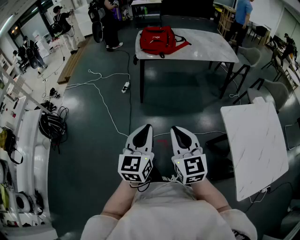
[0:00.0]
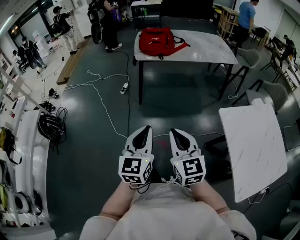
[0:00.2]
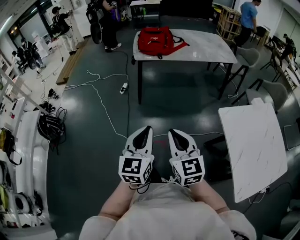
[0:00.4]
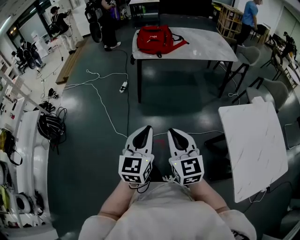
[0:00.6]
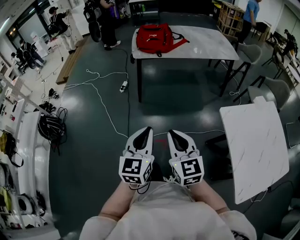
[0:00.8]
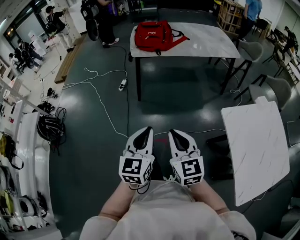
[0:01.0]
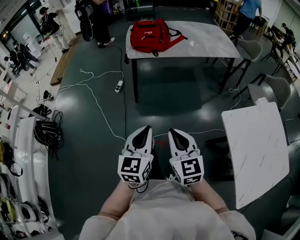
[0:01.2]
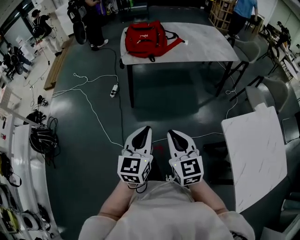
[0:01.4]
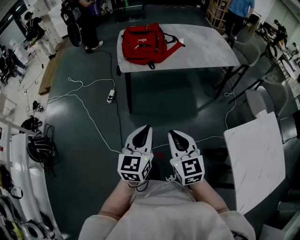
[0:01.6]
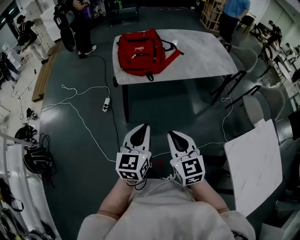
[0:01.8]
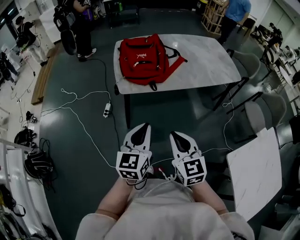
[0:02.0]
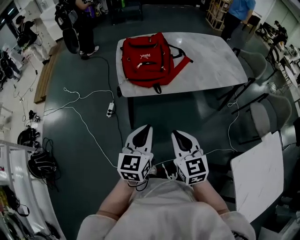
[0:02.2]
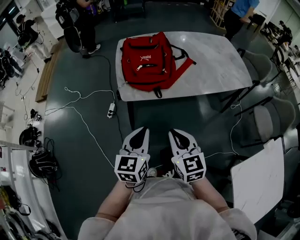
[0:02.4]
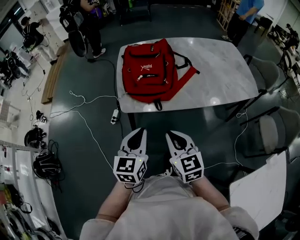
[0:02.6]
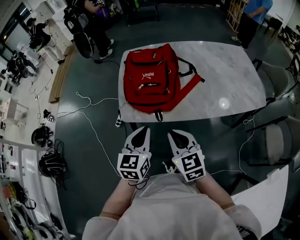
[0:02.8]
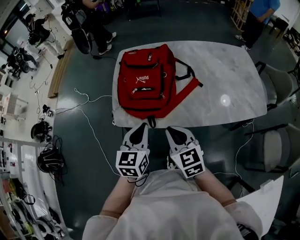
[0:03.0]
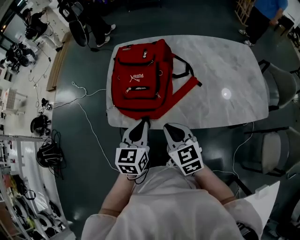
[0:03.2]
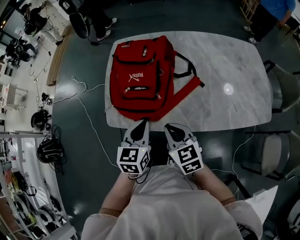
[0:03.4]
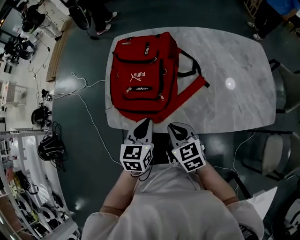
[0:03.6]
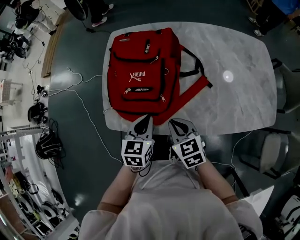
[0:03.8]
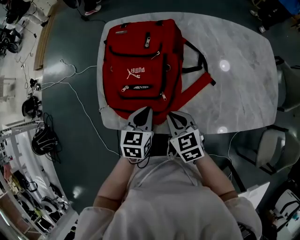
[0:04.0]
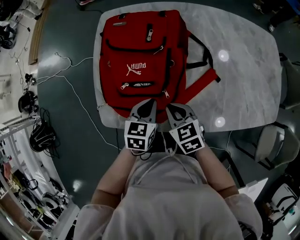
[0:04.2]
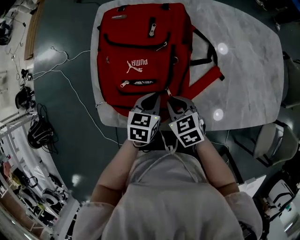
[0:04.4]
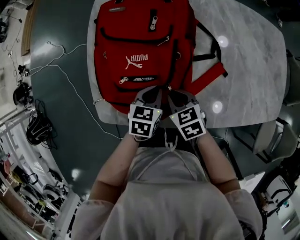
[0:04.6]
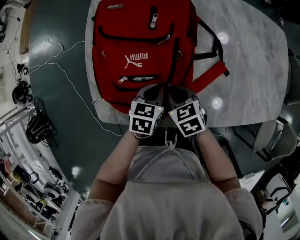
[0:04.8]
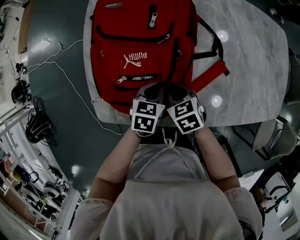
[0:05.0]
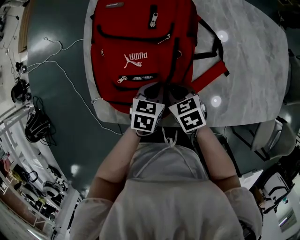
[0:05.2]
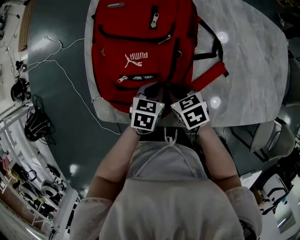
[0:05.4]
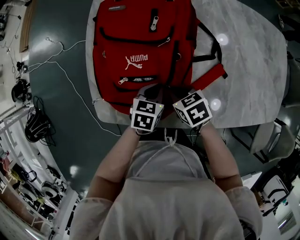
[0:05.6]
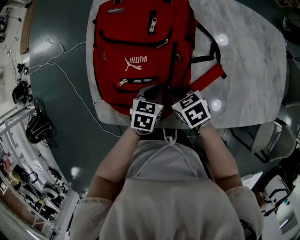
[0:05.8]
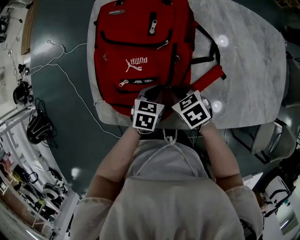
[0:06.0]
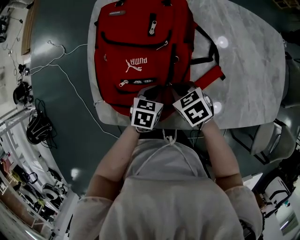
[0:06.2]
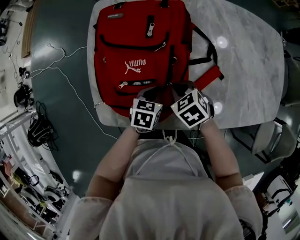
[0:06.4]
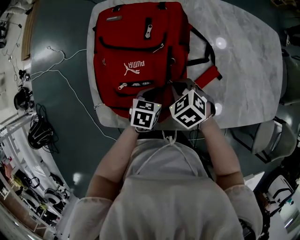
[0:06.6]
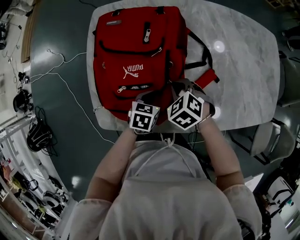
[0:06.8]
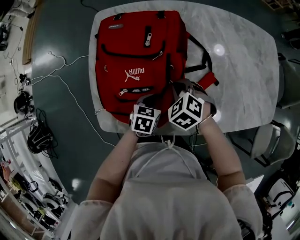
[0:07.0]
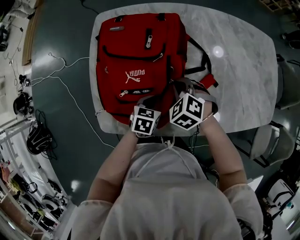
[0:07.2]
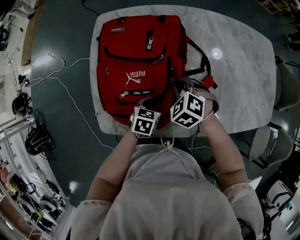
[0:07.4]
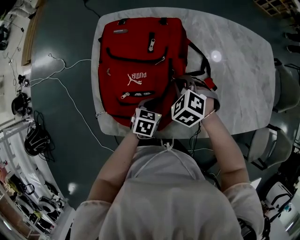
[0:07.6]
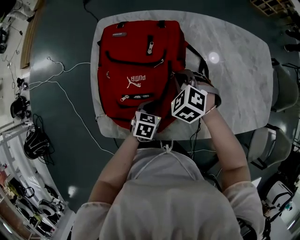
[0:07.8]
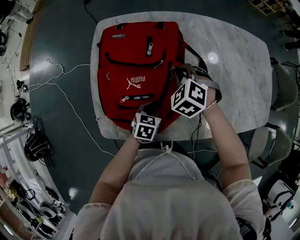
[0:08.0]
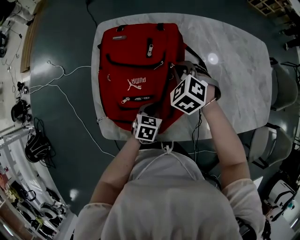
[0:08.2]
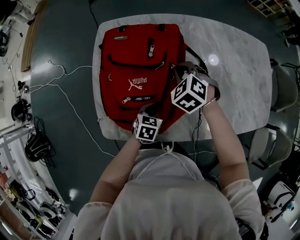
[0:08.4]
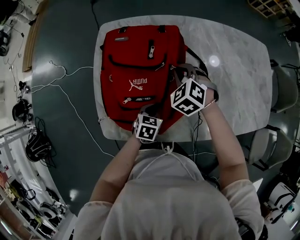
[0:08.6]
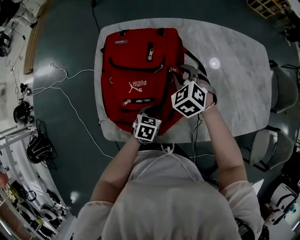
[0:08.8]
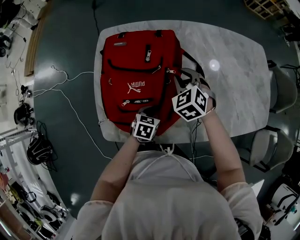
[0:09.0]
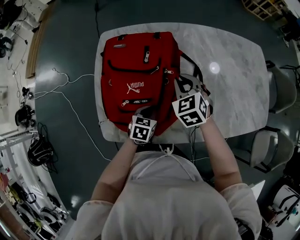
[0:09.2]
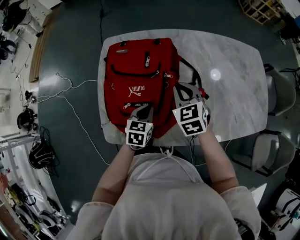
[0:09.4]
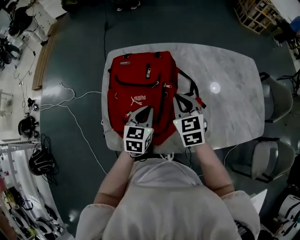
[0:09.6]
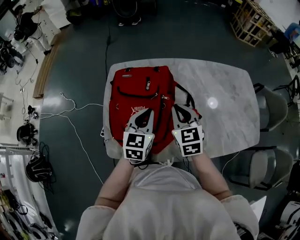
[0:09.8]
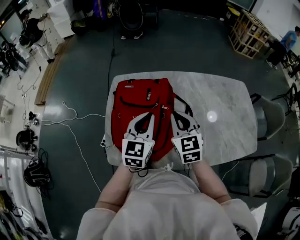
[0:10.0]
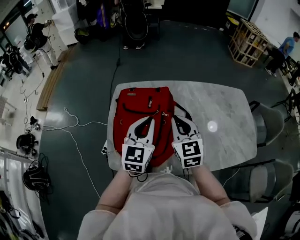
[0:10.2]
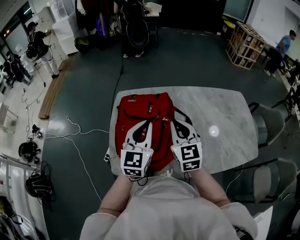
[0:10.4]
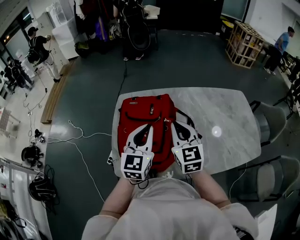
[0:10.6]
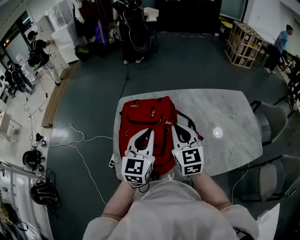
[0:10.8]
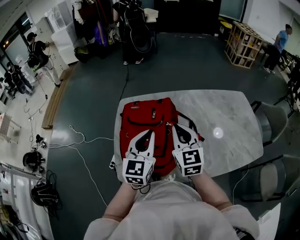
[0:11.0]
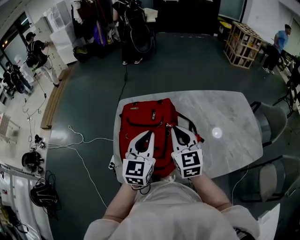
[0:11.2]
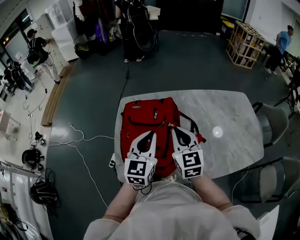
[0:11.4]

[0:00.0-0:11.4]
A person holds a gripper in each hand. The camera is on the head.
0:00.0 to 0:01.4: Both grippers travel together forward, some 15 cm.
0:01.4 to 0:02.8: The pair of grippers is taken forward, some 50 cm.
0:02.8 to 0:04.2: The two grippers go some 30 cm forward and downward. The left gripper swivels about 20 degrees; the right gripper rotates some 30 degrees.
0:04.2 to 0:05.6: The two grippers go approximately 5 cm downward. The right gripper turns by approximately 20 degrees.
0:05.6 to 0:07.2: The right gripper heads forward and upward, covering about 10 cm, and changes its angle by roughly 50 degrees.
0:07.2 to 0:08.6: The right gripper is displaced forward by approximately 10 cm.
0:08.6 to 0:10.0: The right gripper is displaced upward and backward by about 20 cm, and tips its fingers upward by some 30 degrees. The left gripper shifts approximately 30 cm upward, and tilts its fingers approximately 40 degrees upward.
0:10.0 to 0:11.4: The grippers move only a little.

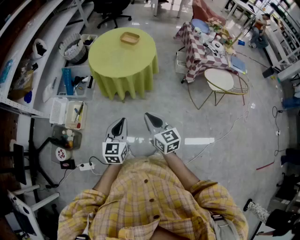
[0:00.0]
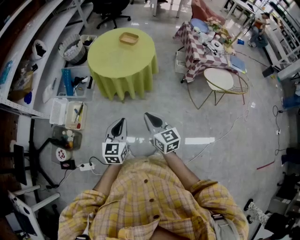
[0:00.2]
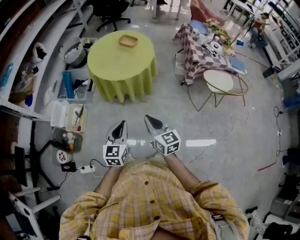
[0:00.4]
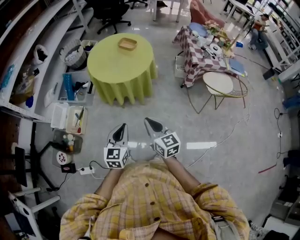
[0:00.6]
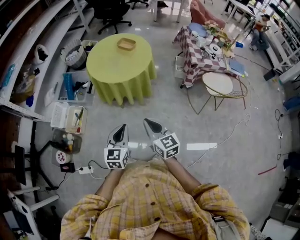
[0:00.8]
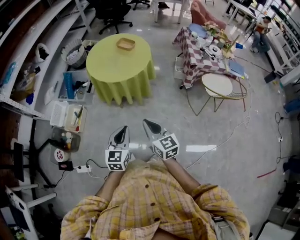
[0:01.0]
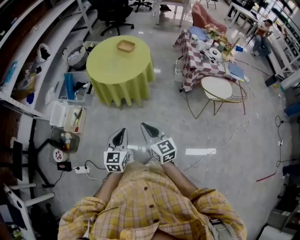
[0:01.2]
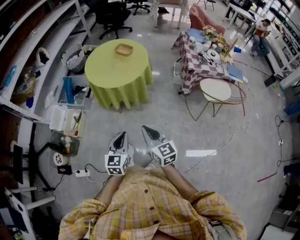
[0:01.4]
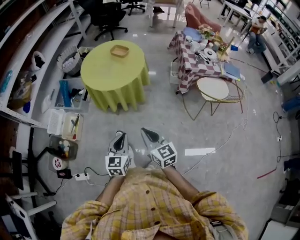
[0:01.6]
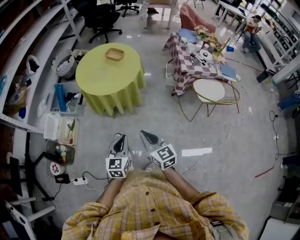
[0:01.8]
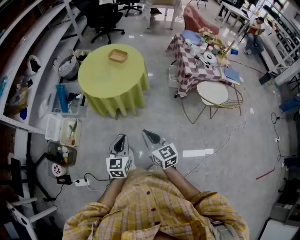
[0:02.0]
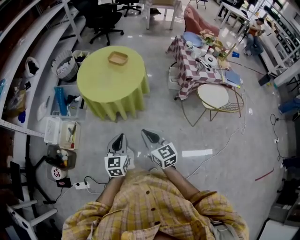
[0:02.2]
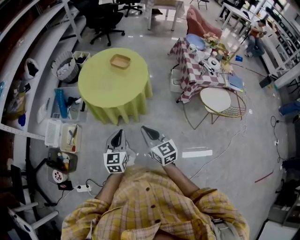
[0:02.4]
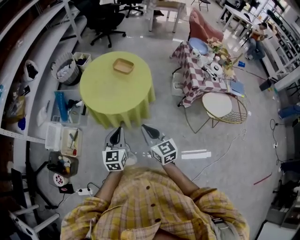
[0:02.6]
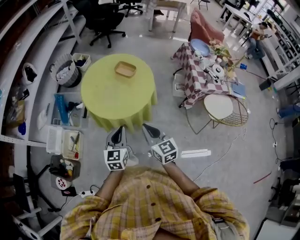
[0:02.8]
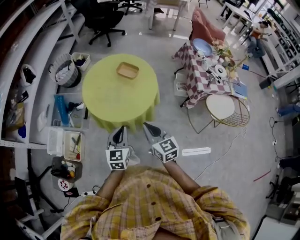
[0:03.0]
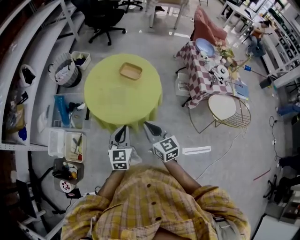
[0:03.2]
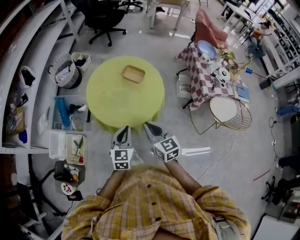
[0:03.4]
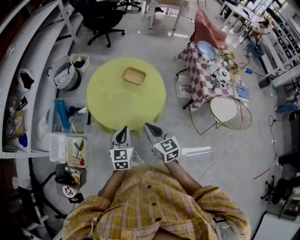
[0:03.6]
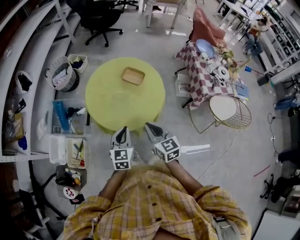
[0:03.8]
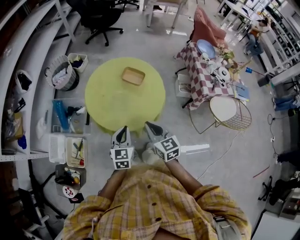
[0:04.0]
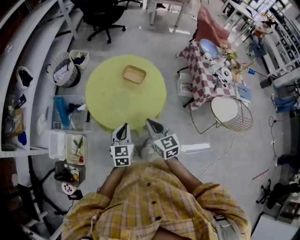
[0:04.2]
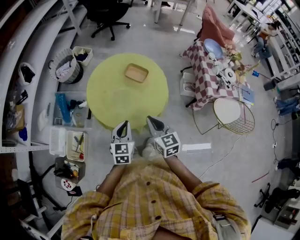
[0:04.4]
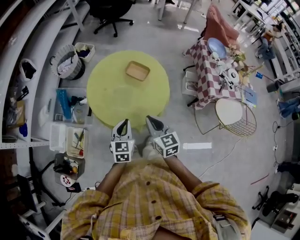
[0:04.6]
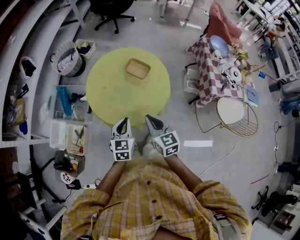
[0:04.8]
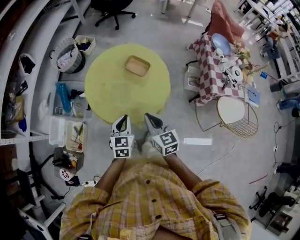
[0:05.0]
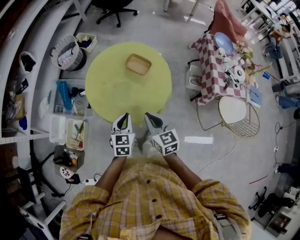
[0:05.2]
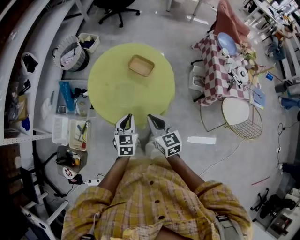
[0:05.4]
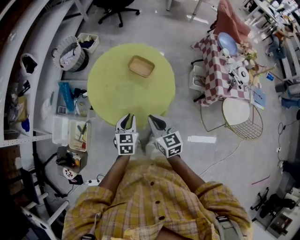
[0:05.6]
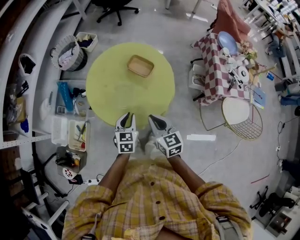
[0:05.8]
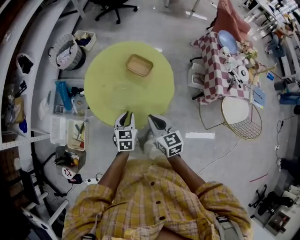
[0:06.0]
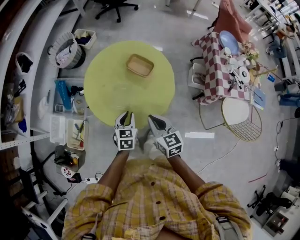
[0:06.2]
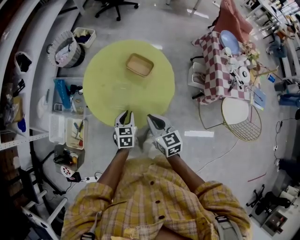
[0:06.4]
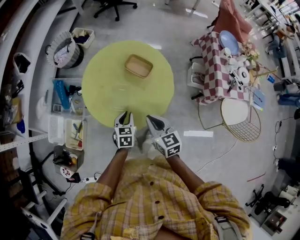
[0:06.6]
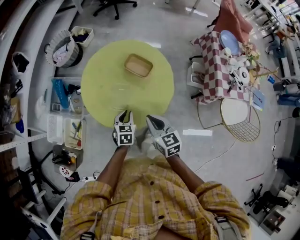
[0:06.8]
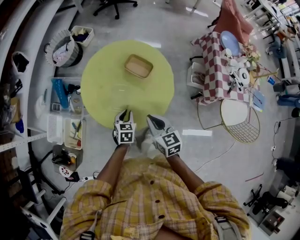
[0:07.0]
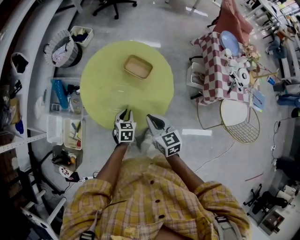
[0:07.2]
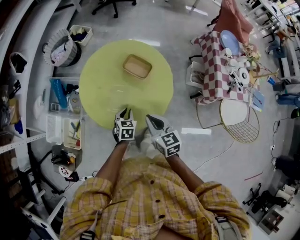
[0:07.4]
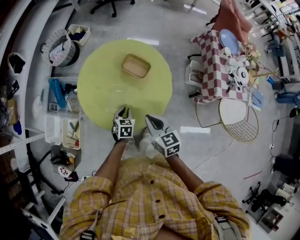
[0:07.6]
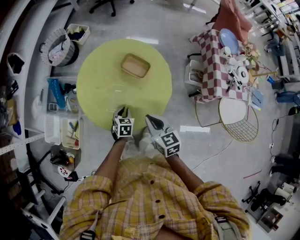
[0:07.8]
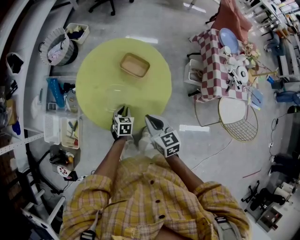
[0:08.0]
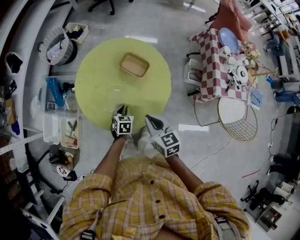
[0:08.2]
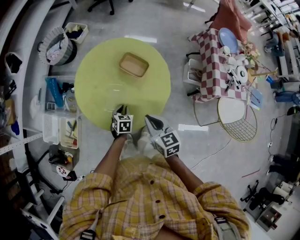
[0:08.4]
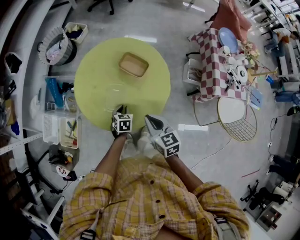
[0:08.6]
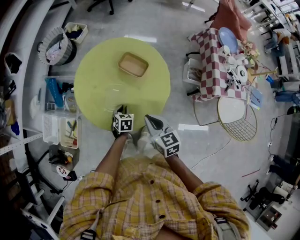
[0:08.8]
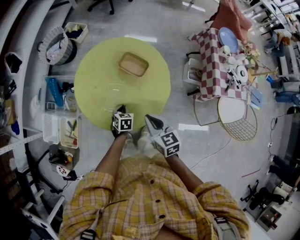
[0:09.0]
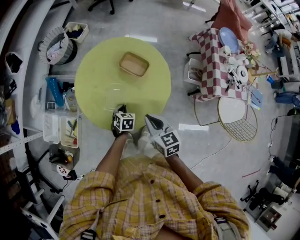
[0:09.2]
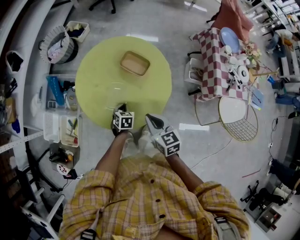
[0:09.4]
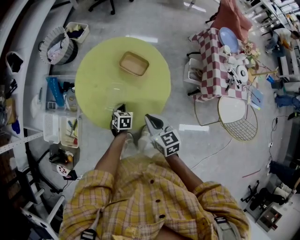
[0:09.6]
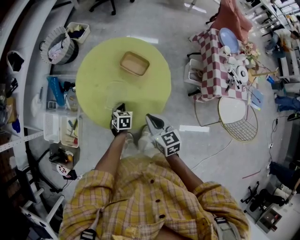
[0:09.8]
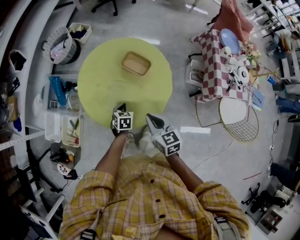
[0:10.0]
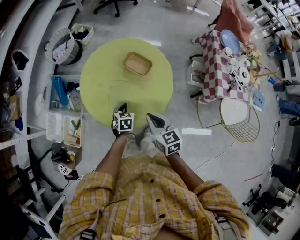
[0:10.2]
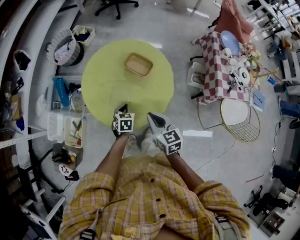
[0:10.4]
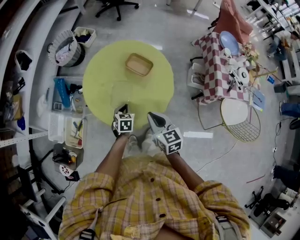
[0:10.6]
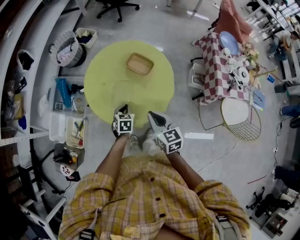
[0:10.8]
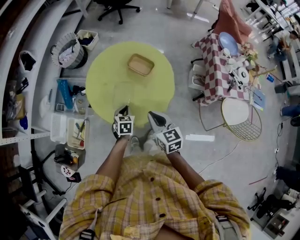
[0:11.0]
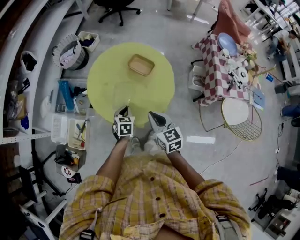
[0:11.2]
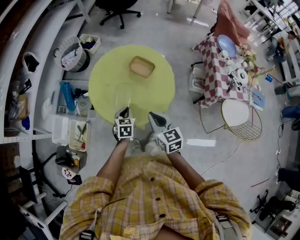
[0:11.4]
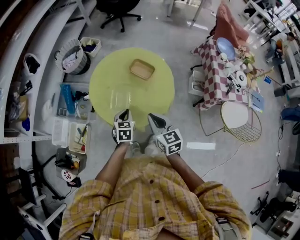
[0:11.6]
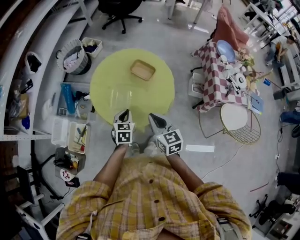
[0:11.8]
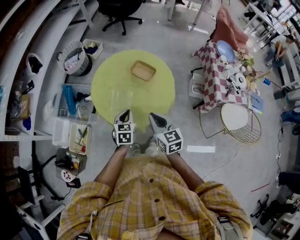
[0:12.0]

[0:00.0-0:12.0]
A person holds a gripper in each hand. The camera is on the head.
0:00.0 to 0:01.6: The grippers both shift to the right by roughly 10 cm.
0:01.6 to 0:03.0: Both grippers move forward, about 35 cm.
0:03.0 to 0:04.4: The grippers both shift forward by about 10 cm.
0:04.4 to 0:06.0: The right gripper moves downward, about 5 cm, while the left gripper travels downward and forward by approximately 10 cm.
0:06.0 to 0:07.6: The right gripper shifts by some 5 cm. Meanwhile the left gripper goes roughly 15 cm downward and forward.
0:07.6 to 0:09.0: The grippers move only a little.
0:09.0 to 0:10.4: The left gripper goes about 5 cm upward.
0:10.4 to 0:12.0: The right gripper moves upward, roughly 5 cm, while the left gripper goes about 15 cm upward and backward.
